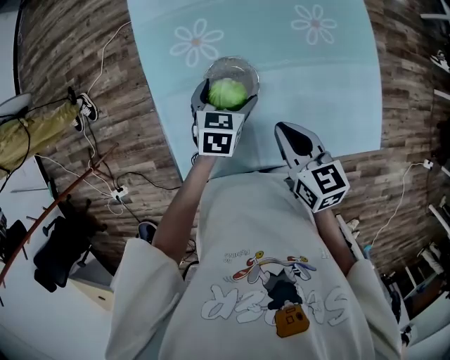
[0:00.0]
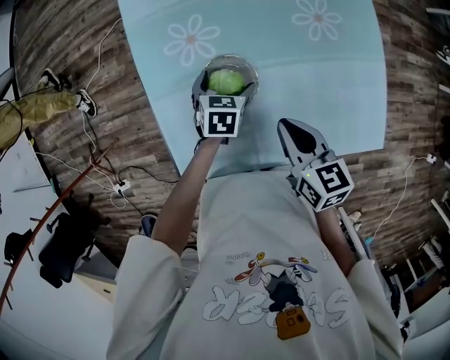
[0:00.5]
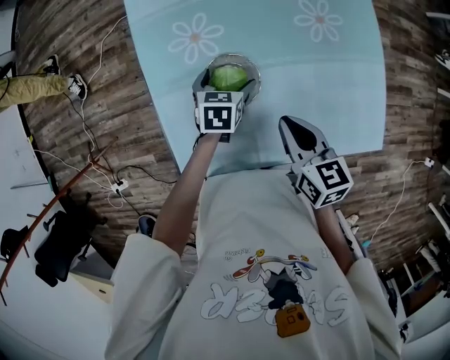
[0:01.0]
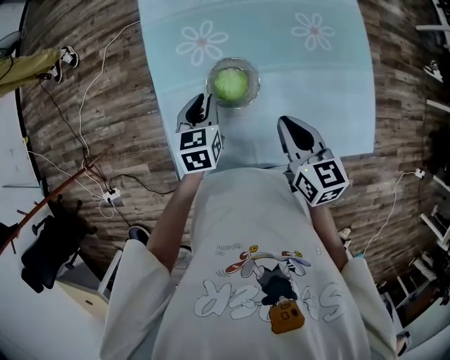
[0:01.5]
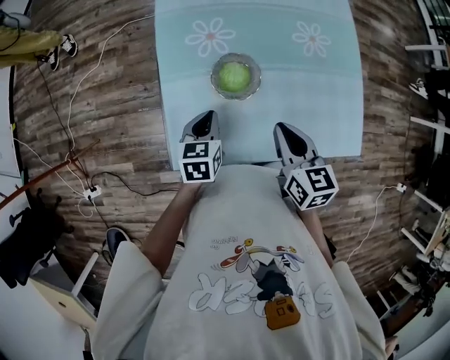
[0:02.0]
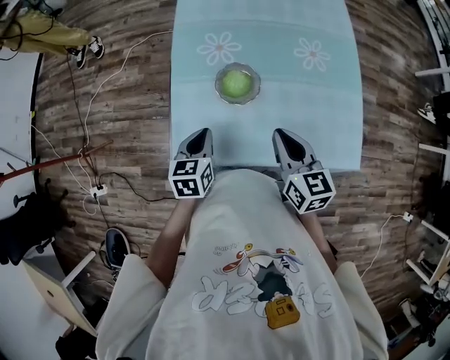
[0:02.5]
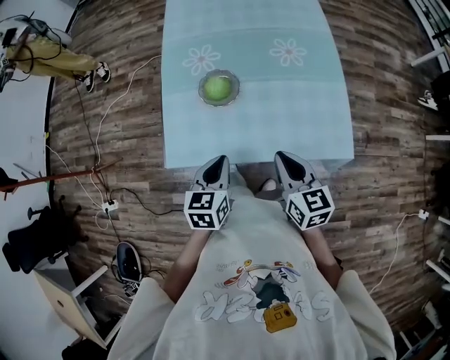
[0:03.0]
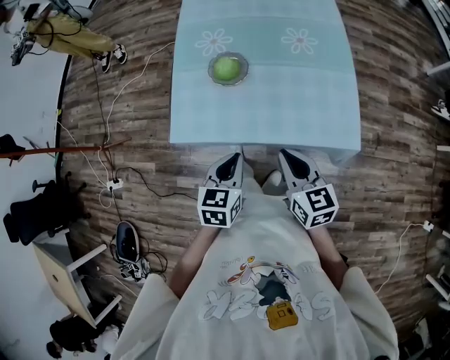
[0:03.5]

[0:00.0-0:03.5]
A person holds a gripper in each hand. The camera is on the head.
0:00.0 to 0:02.0: The right gripper ends up roughly 5 cm from where it was. The left gripper heads backward and to the left, covering roughly 15 cm, and closes.
0:02.0 to 0:03.5: The two grippers go roughly 25 cm backward and to the right.

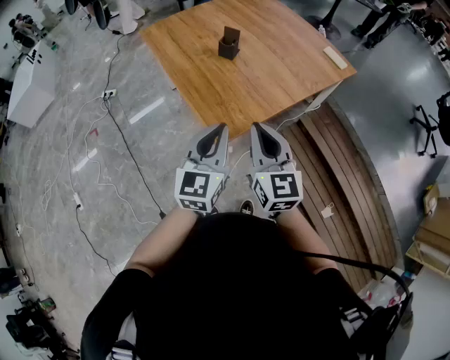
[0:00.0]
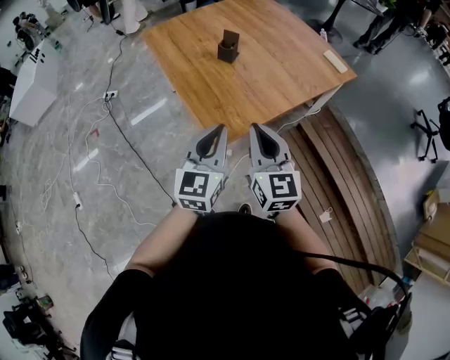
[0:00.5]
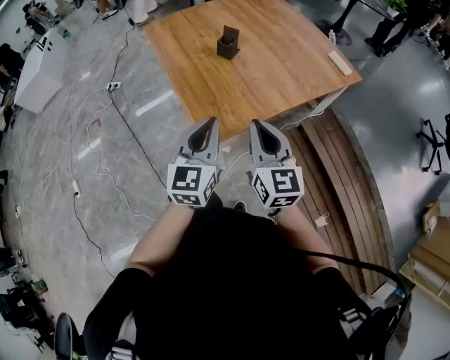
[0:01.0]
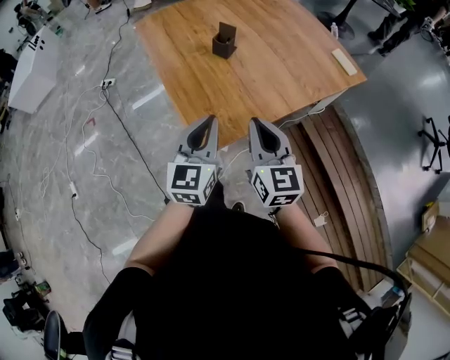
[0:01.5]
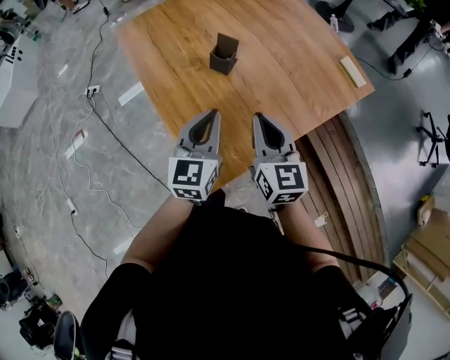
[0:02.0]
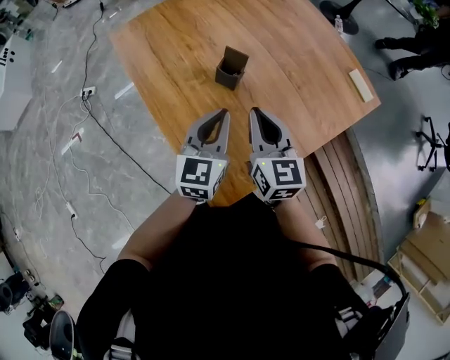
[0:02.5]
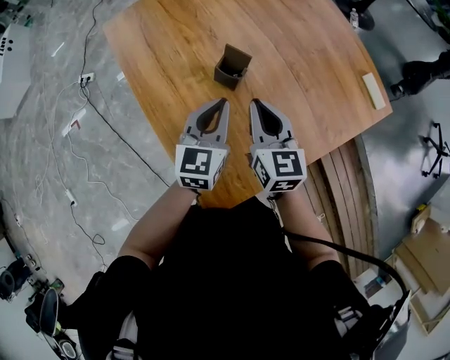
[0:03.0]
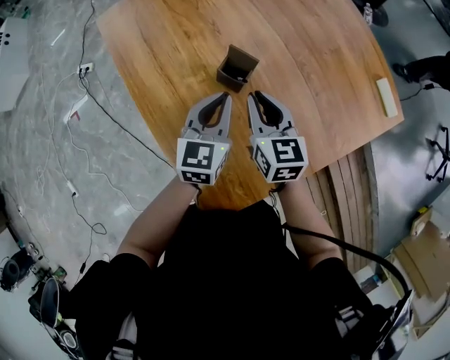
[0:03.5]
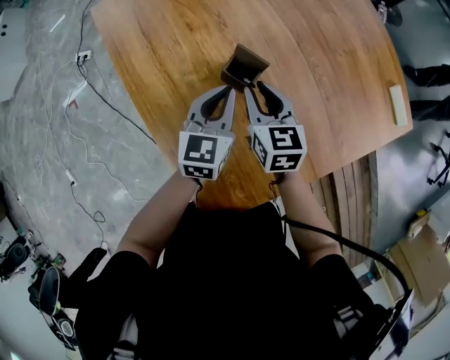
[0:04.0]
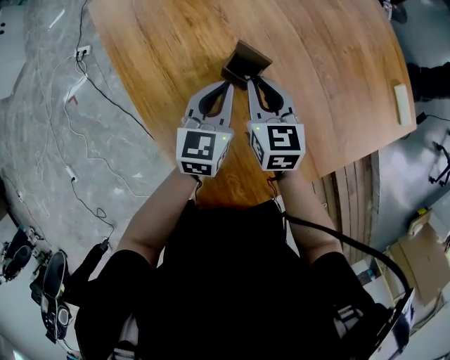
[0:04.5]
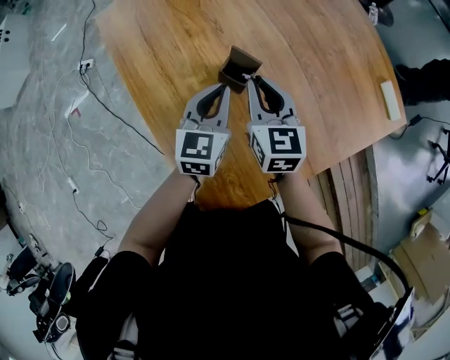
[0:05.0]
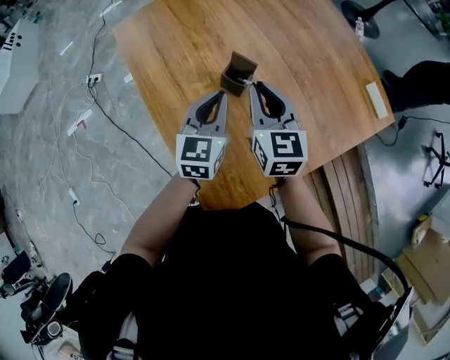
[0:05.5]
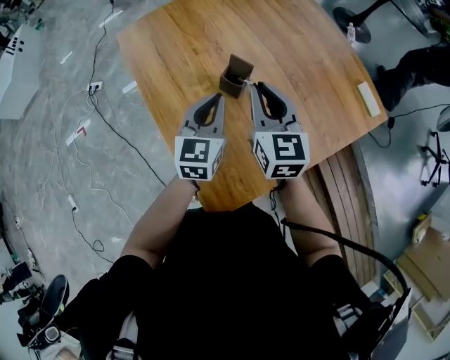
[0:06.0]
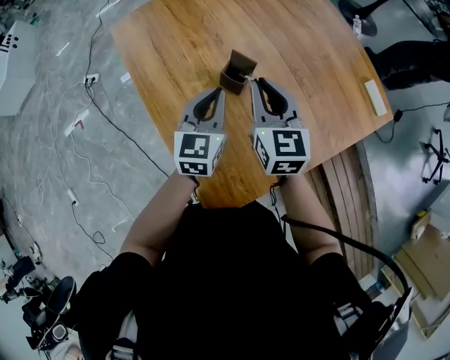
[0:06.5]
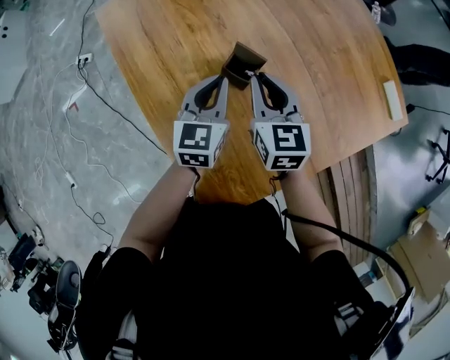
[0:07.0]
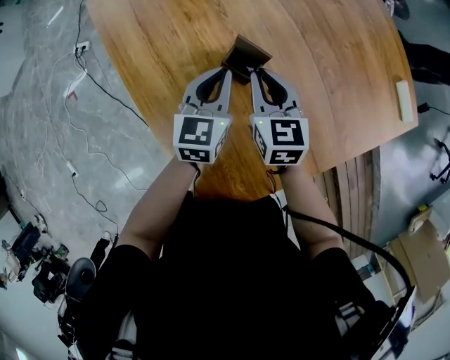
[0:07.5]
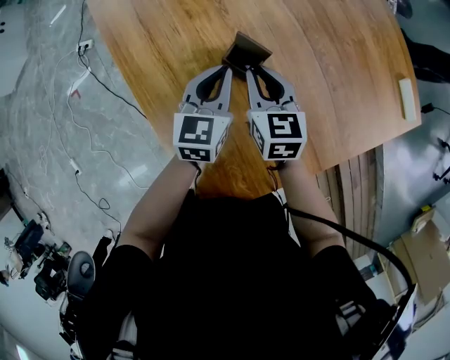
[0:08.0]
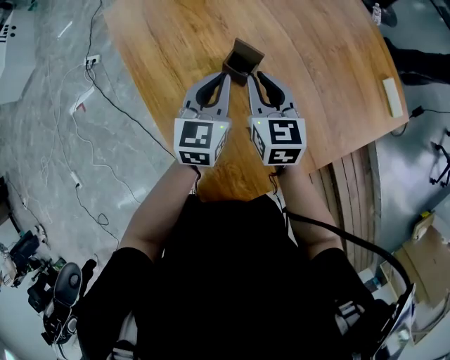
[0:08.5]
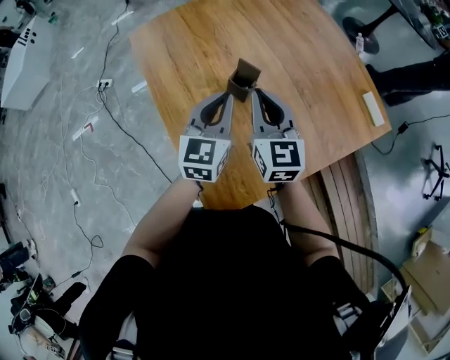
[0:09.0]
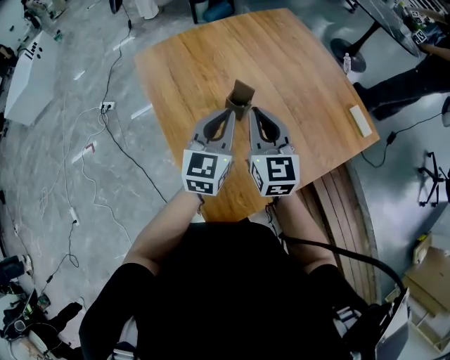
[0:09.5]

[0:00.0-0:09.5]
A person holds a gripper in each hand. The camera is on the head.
0:00.0 to 0:02.0: The grippers both shift forward by approximately 30 cm.
0:02.0 to 0:04.0: Both grippers move forward and downward, approximately 35 cm. The right gripper changes its angle by roughly 20 degrees.
0:04.0 to 0:05.5: The right gripper heads upward, covering about 15 cm. Meanwhile the left gripper goes approximately 10 cm upward and backward.
0:05.5 to 0:07.5: The grippers both shift downward and forward by roughly 15 cm.
0:07.5 to 0:09.5: The grippers both shift upward and backward by about 30 cm. The left gripper swivels approximately 20 degrees, while the right gripper changes its angle by roughly 30 degrees.

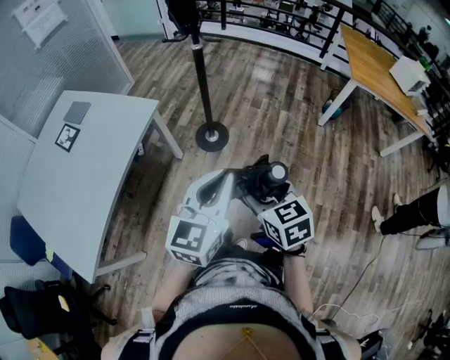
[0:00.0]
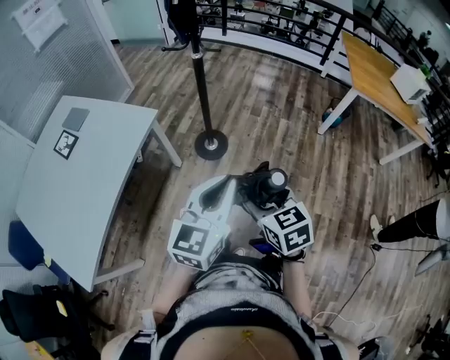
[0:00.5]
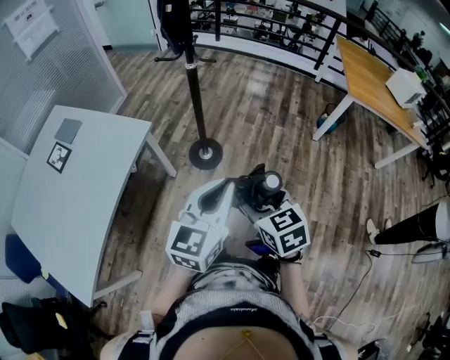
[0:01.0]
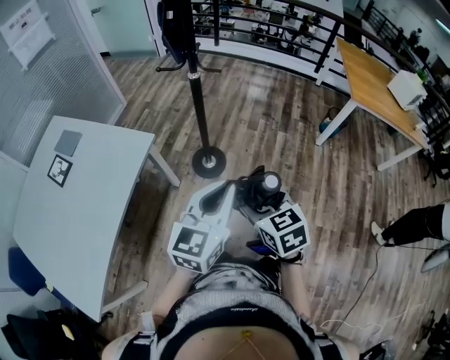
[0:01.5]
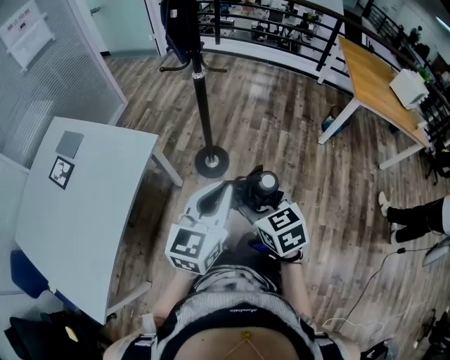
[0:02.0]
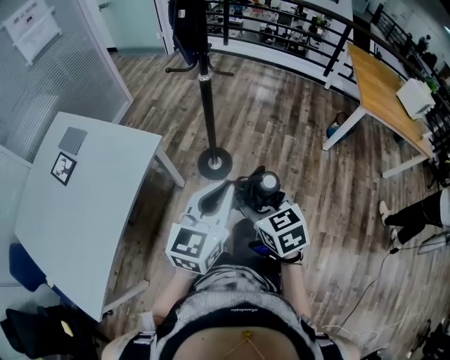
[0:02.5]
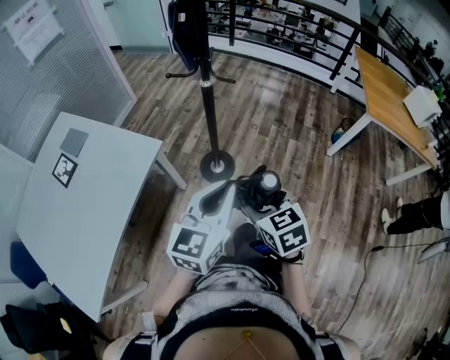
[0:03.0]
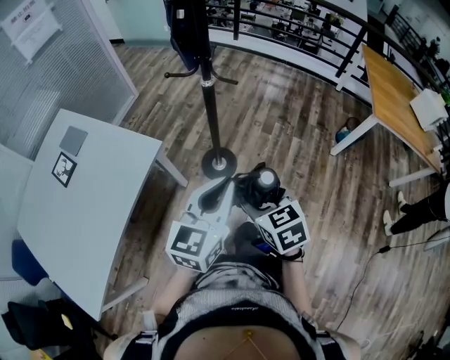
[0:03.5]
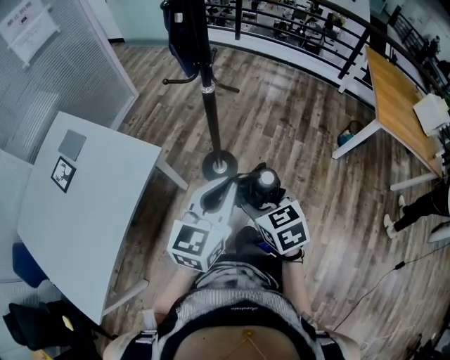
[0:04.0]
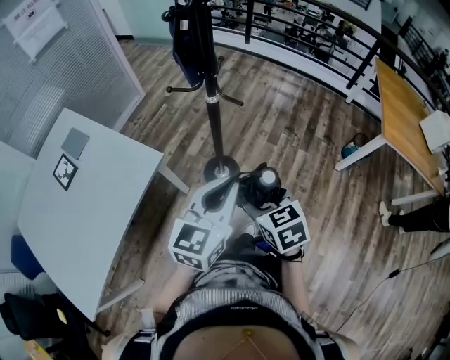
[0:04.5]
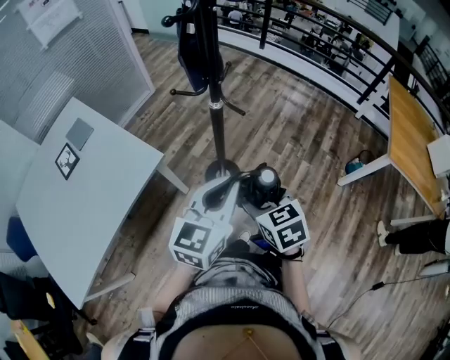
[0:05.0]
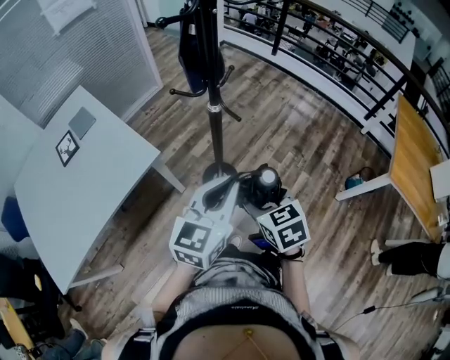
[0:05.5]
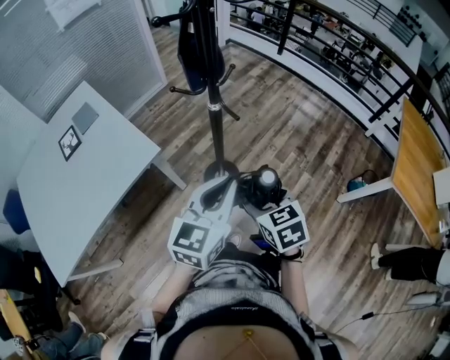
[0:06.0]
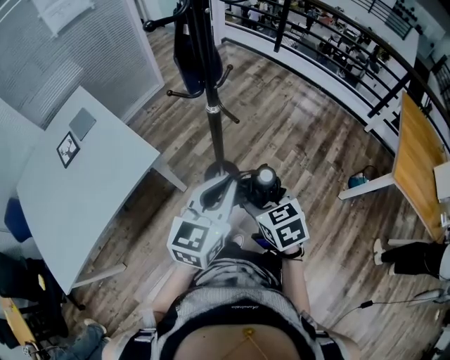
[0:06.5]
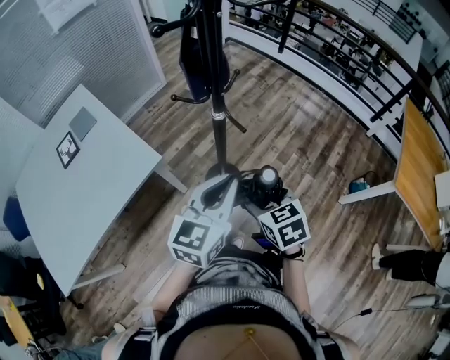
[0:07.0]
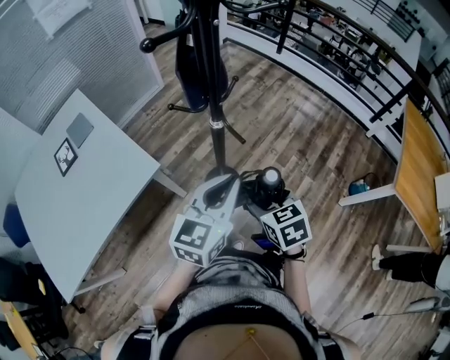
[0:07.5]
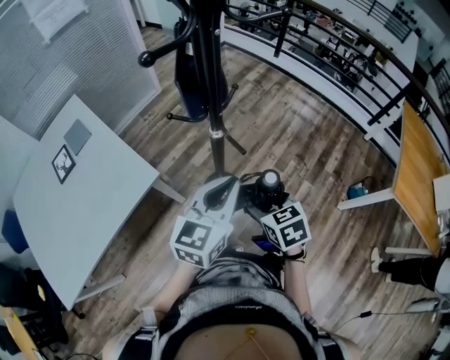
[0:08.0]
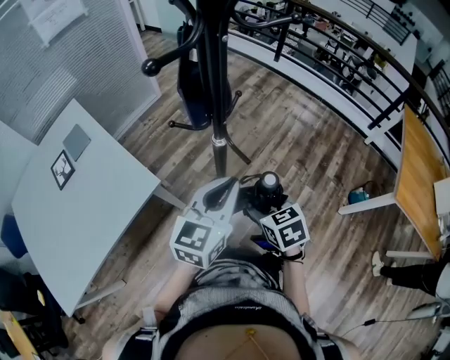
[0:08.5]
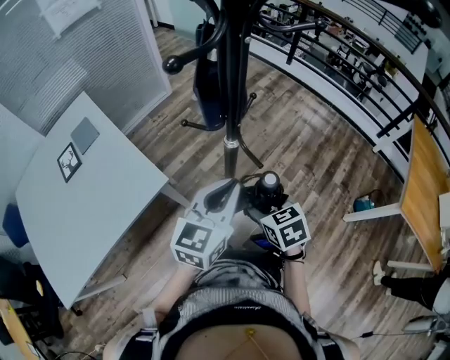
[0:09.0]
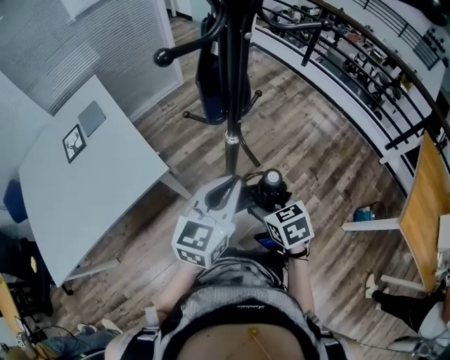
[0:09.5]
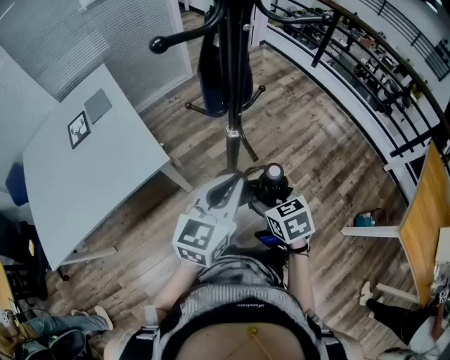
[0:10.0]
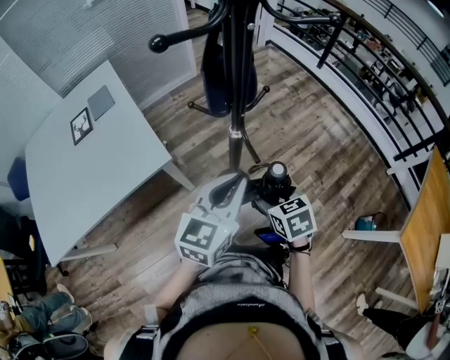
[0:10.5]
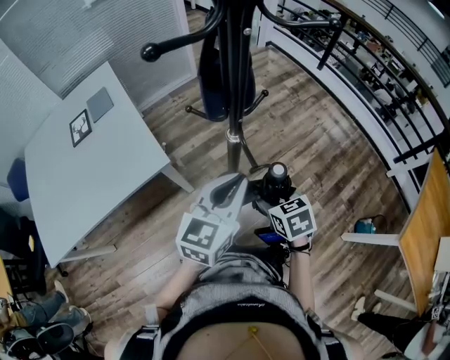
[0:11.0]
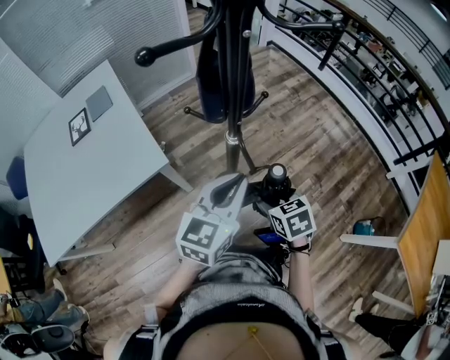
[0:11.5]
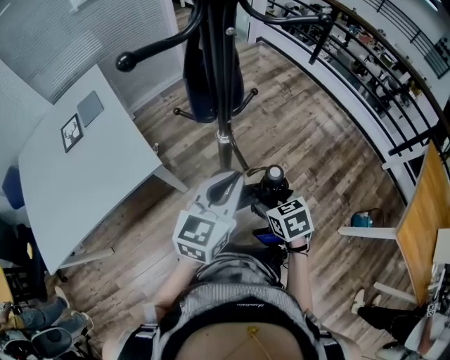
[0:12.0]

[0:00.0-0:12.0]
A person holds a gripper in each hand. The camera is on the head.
0:00.0 to 0:02.0: Both grippers move forward, about 15 cm.
0:02.0 to 0:04.0: Both grippers travel together forward, roughly 15 cm.
0:04.0 to 0:06.0: Both grippers move forward and to the right, about 10 cm.
0:06.0 to 0:08.0: Both grippers travel together forward, some 10 cm.
0:08.0 to 0:10.0: The right gripper shifts by roughly 5 cm.
0:10.0 to 0:12.0: The right gripper ends up roughly 5 cm from where it was.

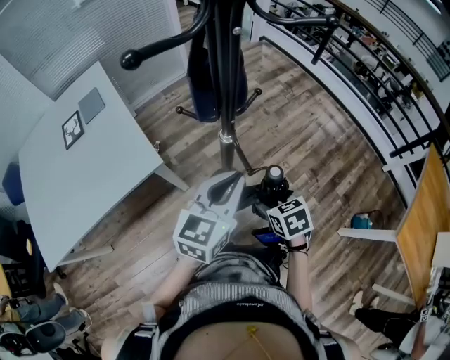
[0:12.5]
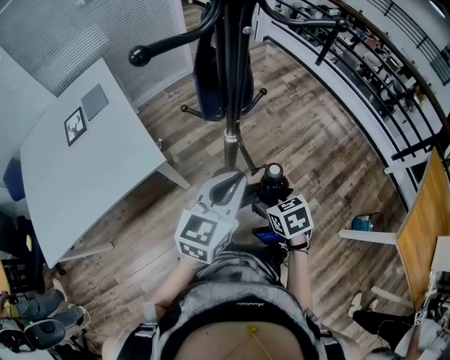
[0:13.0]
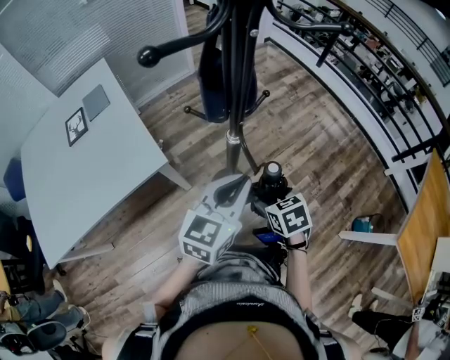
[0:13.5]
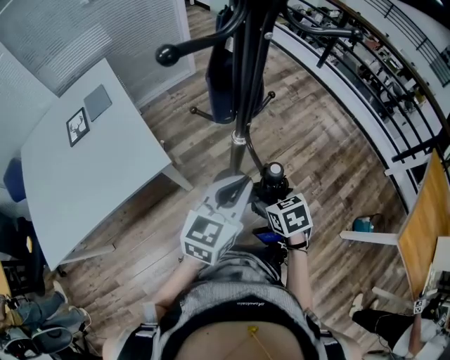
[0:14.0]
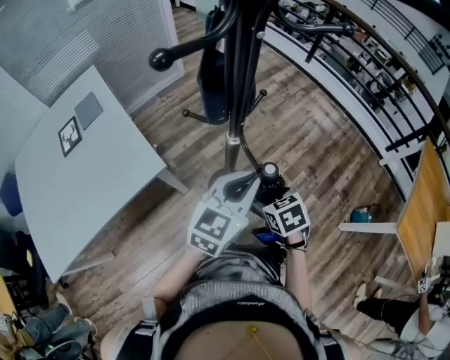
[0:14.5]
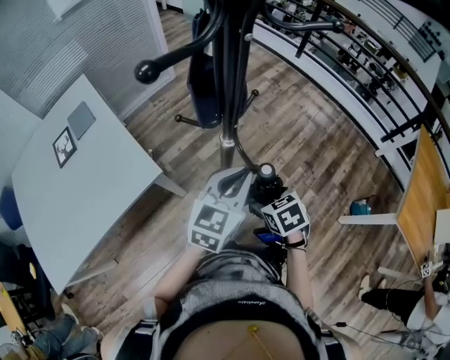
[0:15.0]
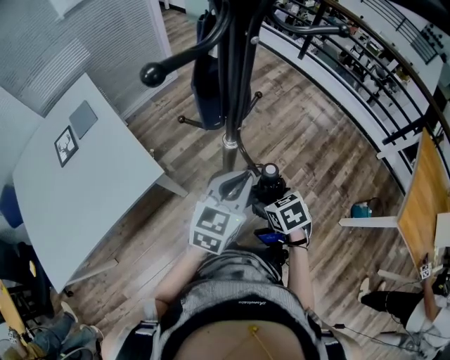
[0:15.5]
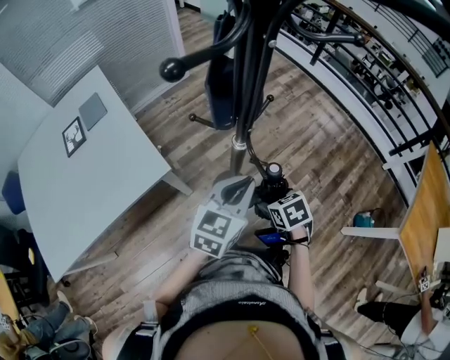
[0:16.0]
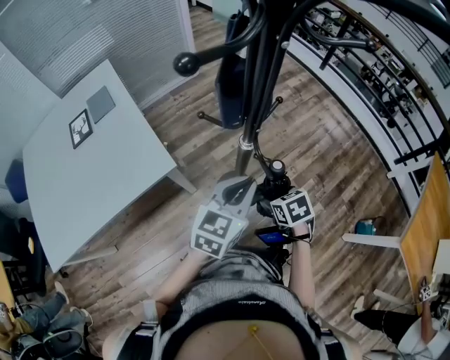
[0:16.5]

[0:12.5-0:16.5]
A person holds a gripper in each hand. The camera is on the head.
0:12.5 to 0:16.5: There are only small adjustments of the grippers.
